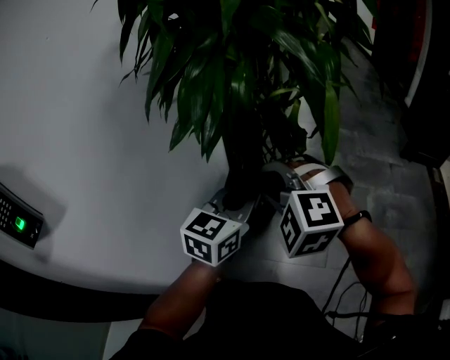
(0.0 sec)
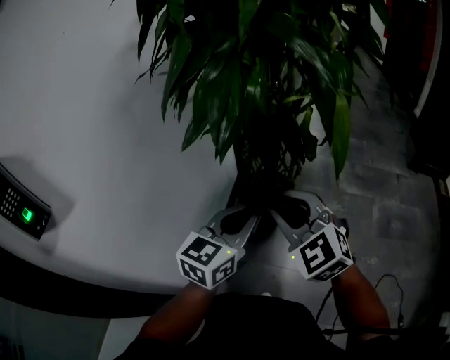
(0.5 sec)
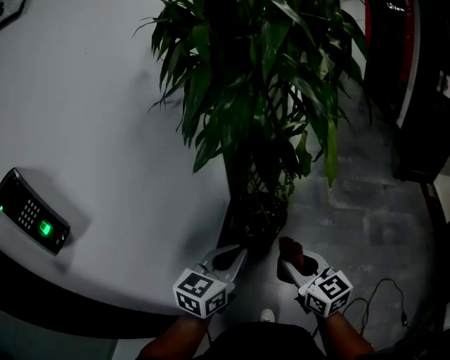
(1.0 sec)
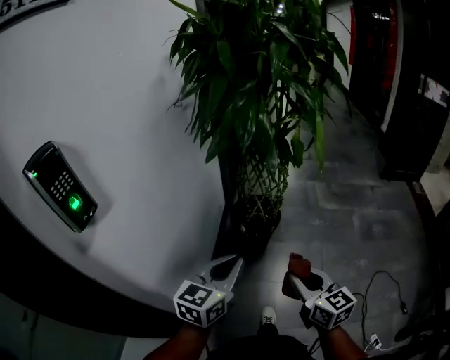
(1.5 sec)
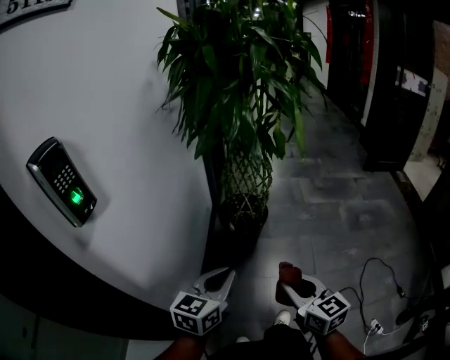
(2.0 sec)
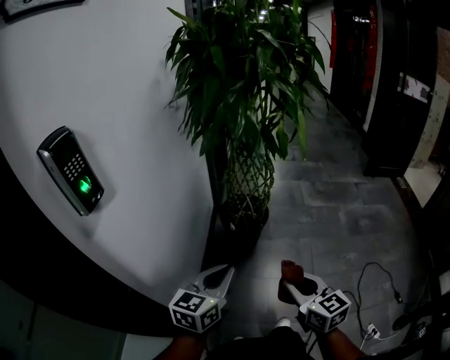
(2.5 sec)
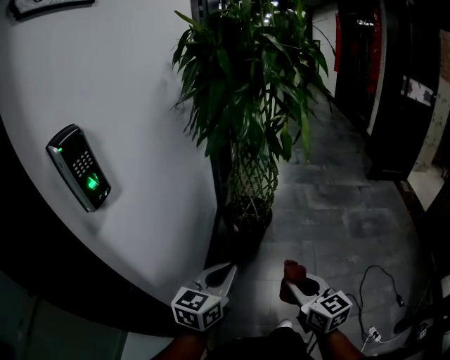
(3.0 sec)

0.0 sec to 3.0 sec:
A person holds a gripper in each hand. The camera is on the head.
0.0 sec to 1.5 sec: The right gripper travels backward by about 25 cm, and rolls clockwise, seen from behind, by roughly 80 degrees. The left gripper goes some 25 cm backward and to the left.
1.5 sec to 3.0 sec: The grippers both shift backward by about 10 cm.

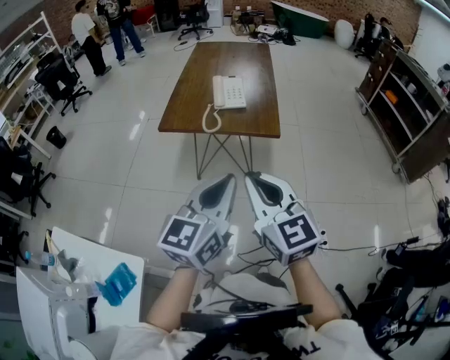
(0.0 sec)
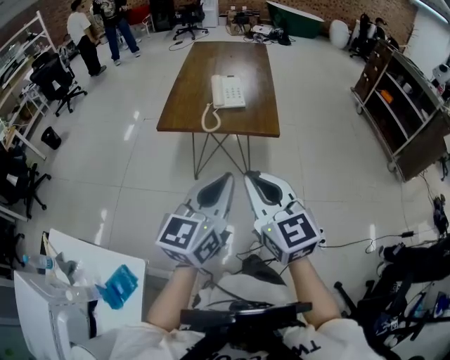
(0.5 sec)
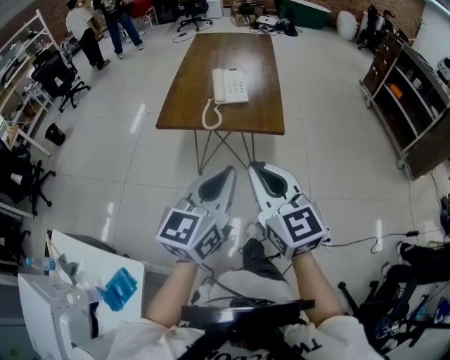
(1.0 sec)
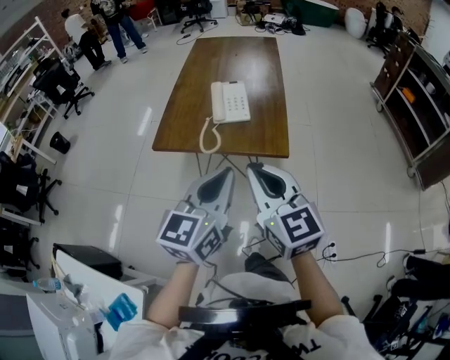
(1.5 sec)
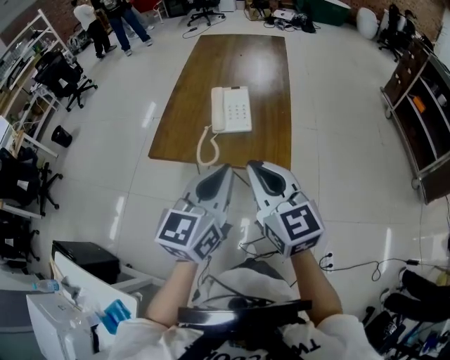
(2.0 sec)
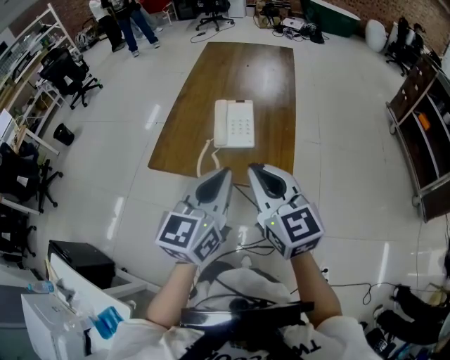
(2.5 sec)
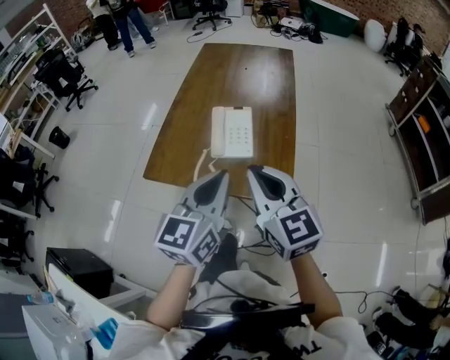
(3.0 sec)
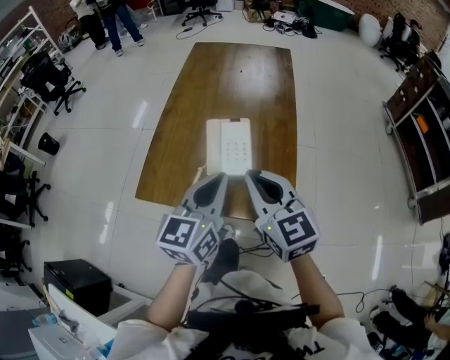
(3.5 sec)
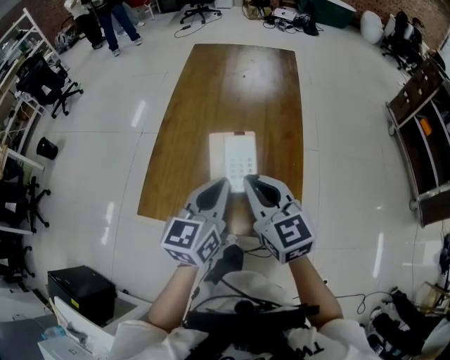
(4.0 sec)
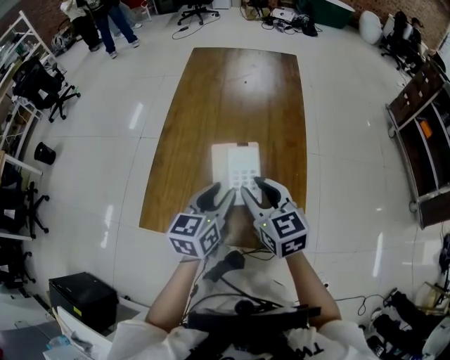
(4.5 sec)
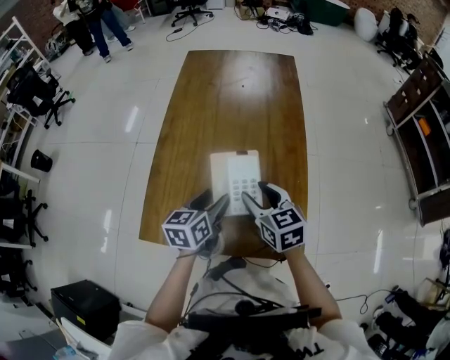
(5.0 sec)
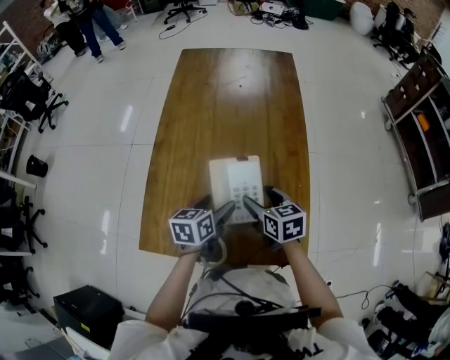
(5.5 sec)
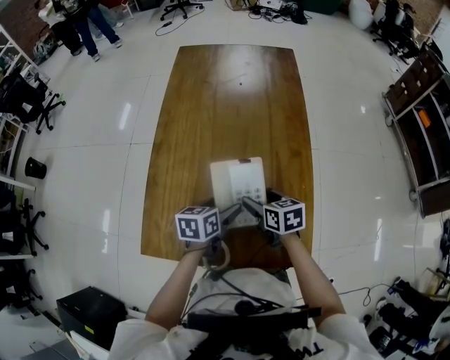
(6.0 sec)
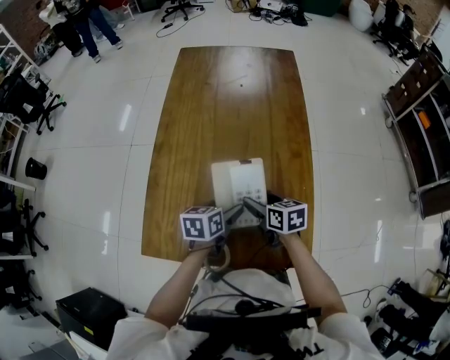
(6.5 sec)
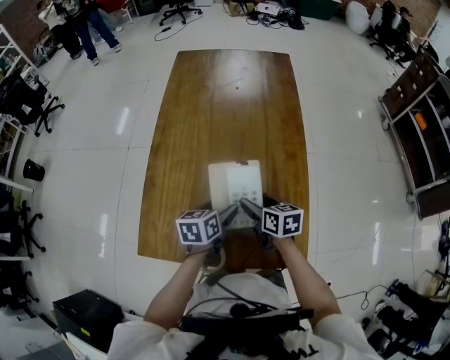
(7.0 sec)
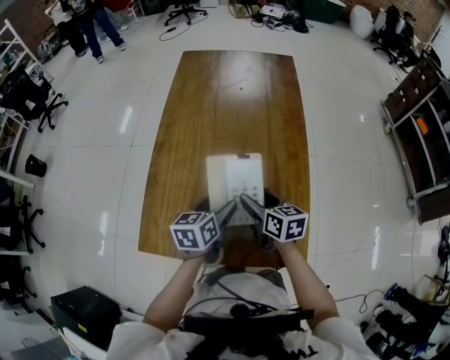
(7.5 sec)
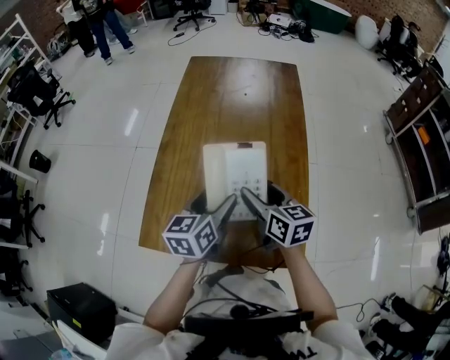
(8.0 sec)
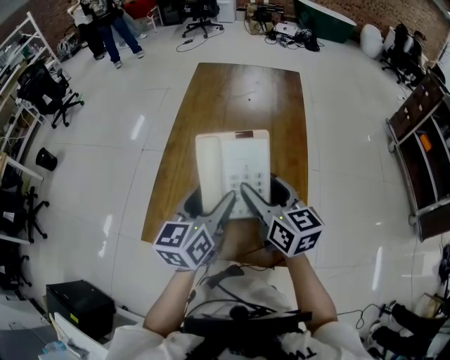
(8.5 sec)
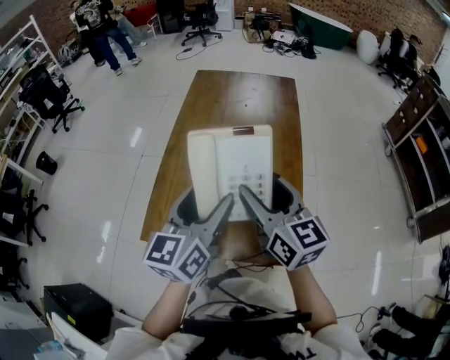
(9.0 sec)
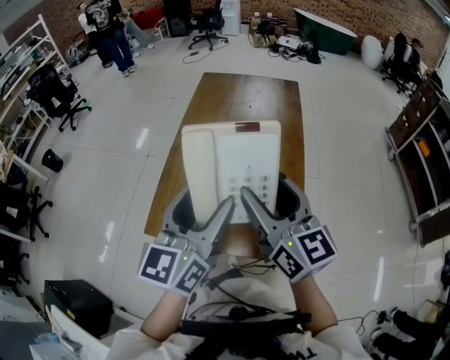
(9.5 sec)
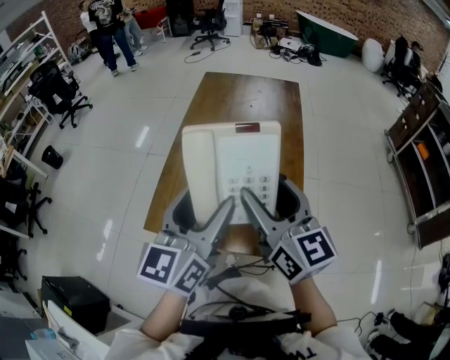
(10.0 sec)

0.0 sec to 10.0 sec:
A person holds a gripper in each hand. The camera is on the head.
0.0 sec to 2.0 sec: The two grippers go some 25 cm forward.
2.0 sec to 4.0 sec: The grippers both shift forward by approximately 25 cm.
4.0 sec to 6.0 sec: The grippers both shift downward and forward by roughly 25 cm. The right gripper swivels approximately 40 degrees, and opens. Meanwhile the left gripper rotates some 40 degrees, and opens up.
6.0 sec to 8.0 sec: The grippers both shift upward by some 15 cm. The left gripper swivels some 20 degrees. Meanwhile the right gripper turns by approximately 20 degrees.
8.0 sec to 10.0 sec: Both grippers move upward and backward, roughly 25 cm. The left gripper rotates approximately 30 degrees, while the right gripper changes its angle by approximately 30 degrees.

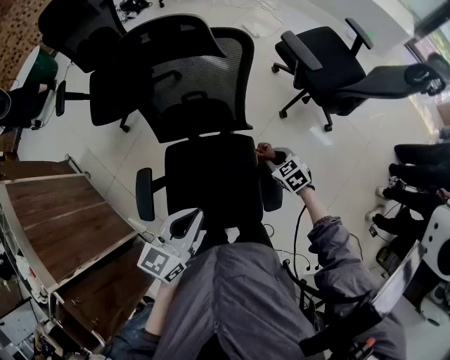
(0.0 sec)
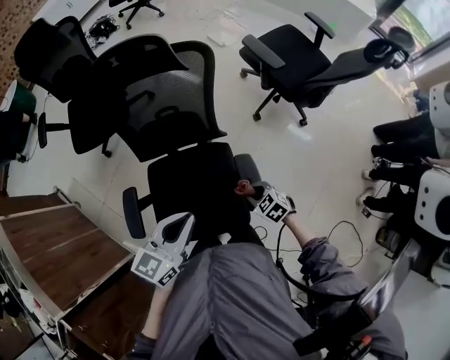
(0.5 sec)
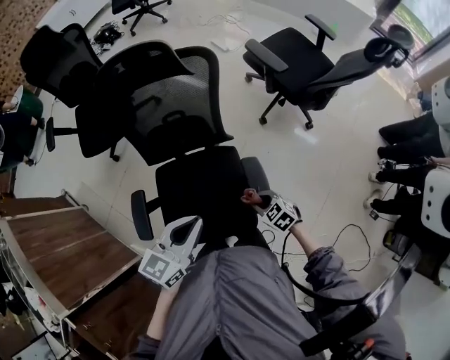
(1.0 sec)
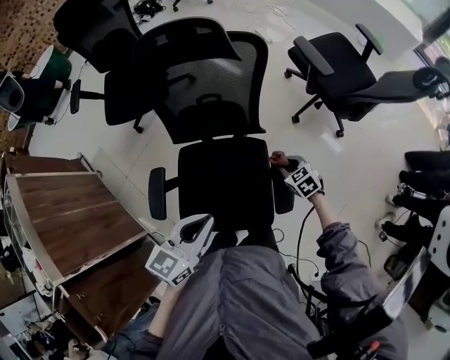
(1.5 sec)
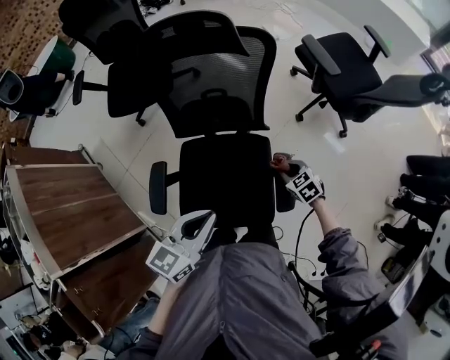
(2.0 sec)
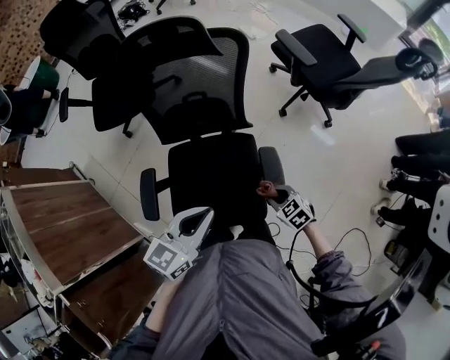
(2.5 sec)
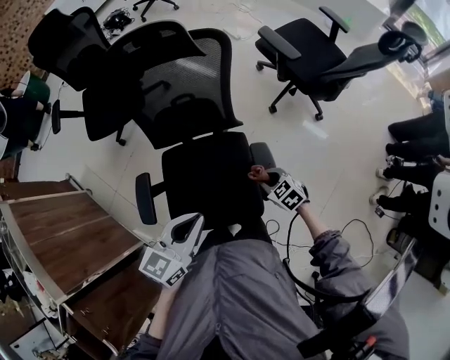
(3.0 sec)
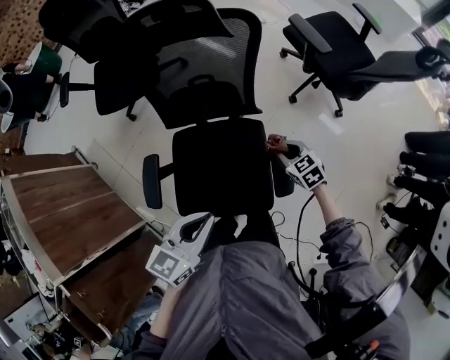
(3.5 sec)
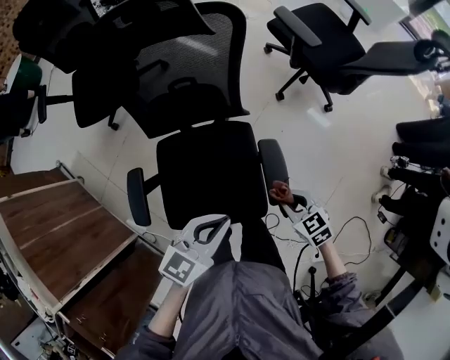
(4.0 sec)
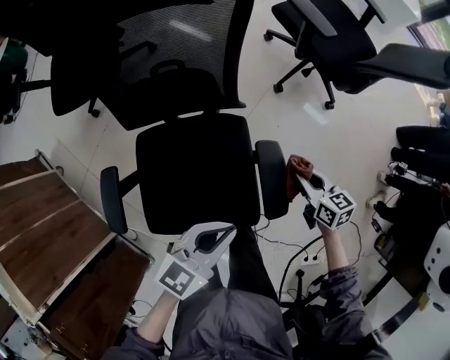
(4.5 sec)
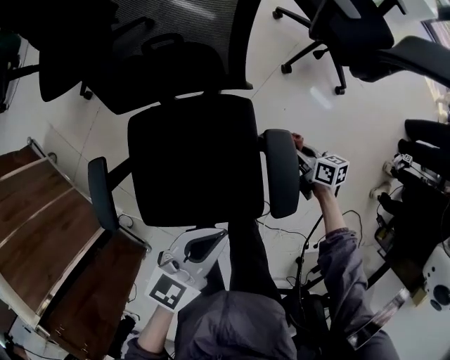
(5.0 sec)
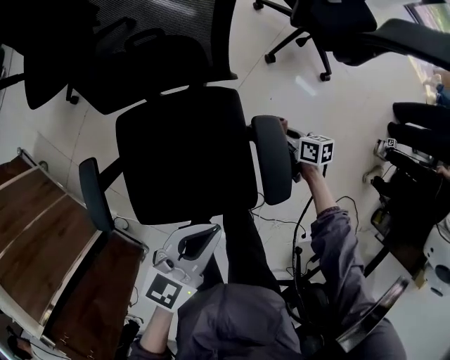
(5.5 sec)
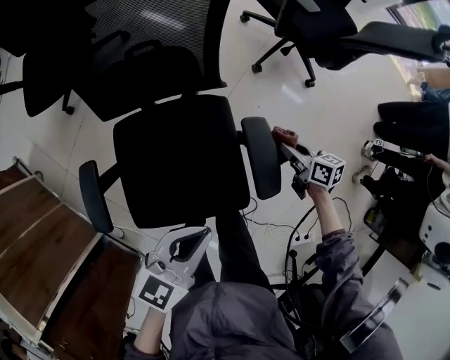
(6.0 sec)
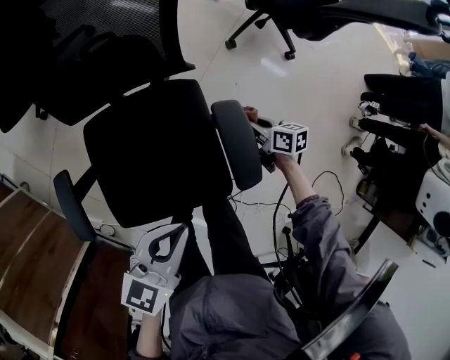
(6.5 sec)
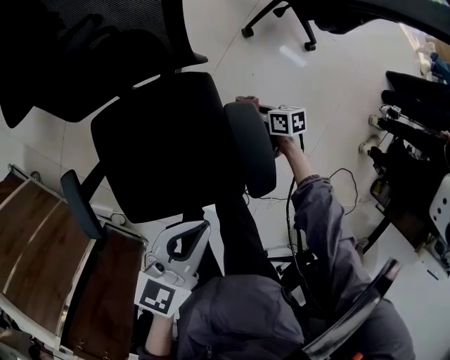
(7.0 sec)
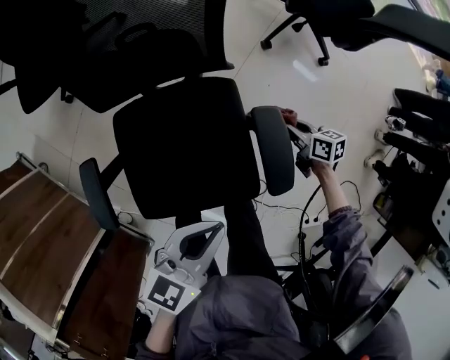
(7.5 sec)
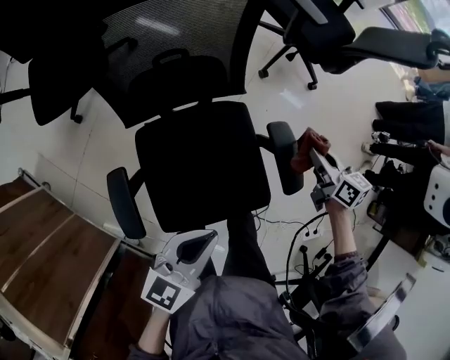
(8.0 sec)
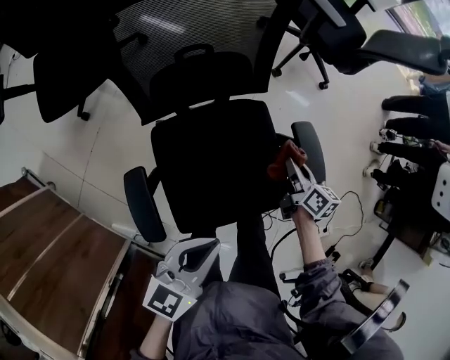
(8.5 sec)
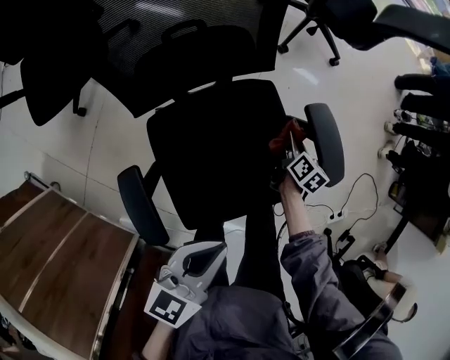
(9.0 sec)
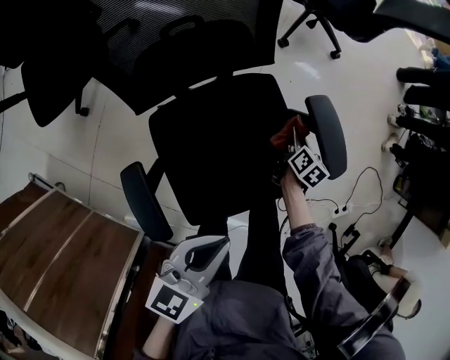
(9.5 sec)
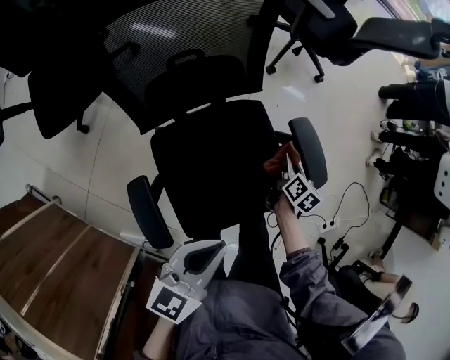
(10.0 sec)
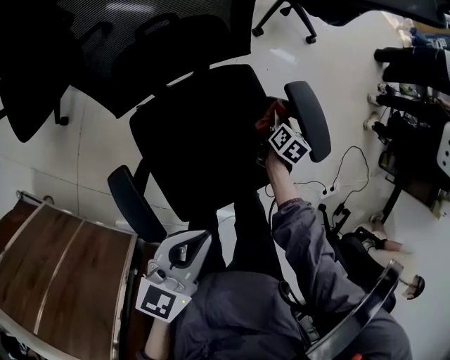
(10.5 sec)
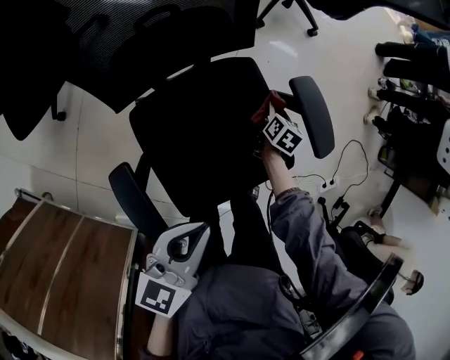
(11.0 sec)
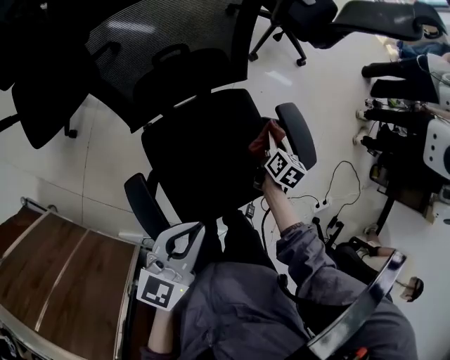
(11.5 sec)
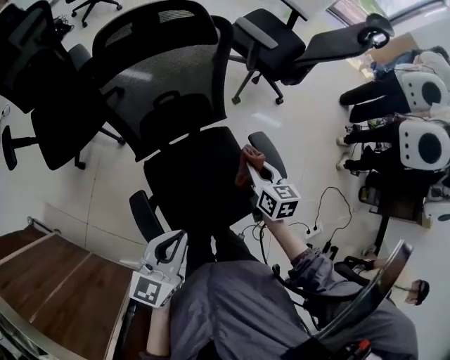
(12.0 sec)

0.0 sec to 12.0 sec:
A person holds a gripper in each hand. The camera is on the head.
0.0 sec to 2.0 sec: The right gripper travels backward and back again, about 15 cm each way.
2.0 sec to 4.0 sec: The left gripper is displaced downward and to the right by about 10 cm. The right gripper moves forward and backward over roughly 15 cm, changing direction 2 times.
4.0 sec to 6.0 sec: The right gripper shifts roughly 20 cm forward, downward and to the right, and changes its angle by approximately 40 degrees, while the left gripper goes some 5 cm downward.
6.0 sec to 8.0 sec: The right gripper heads upward, covering roughly 15 cm. The left gripper heads to the left, covering about 10 cm.
8.0 sec to 10.0 sec: The right gripper is displaced downward by roughly 15 cm, and turns by roughly 40 degrees. The left gripper shifts by about 5 cm.
10.0 sec to 12.0 sec: The right gripper moves upward and to the left, roughly 25 cm, and changes its angle by roughly 30 degrees. The left gripper heads upward and to the left, covering about 10 cm.

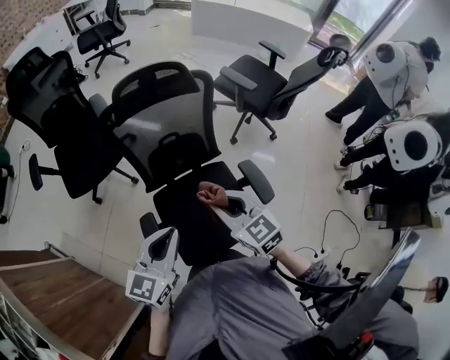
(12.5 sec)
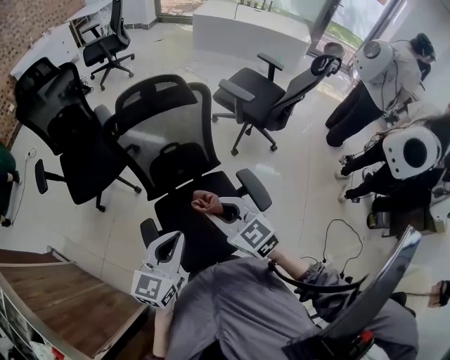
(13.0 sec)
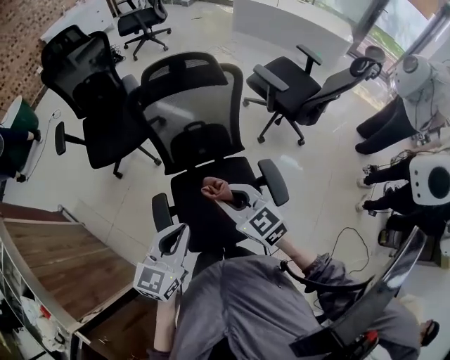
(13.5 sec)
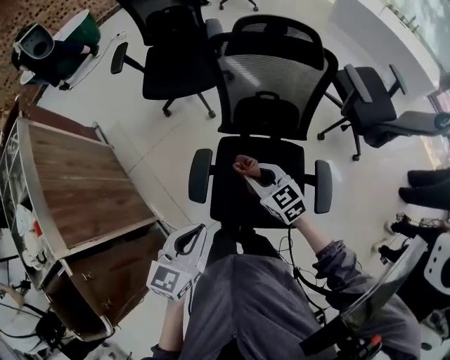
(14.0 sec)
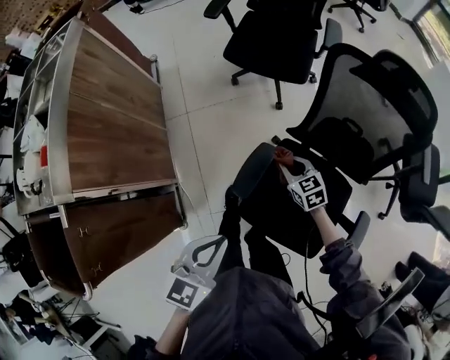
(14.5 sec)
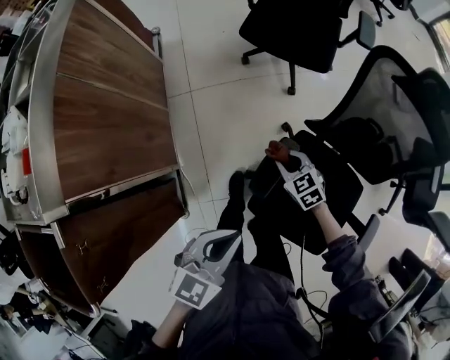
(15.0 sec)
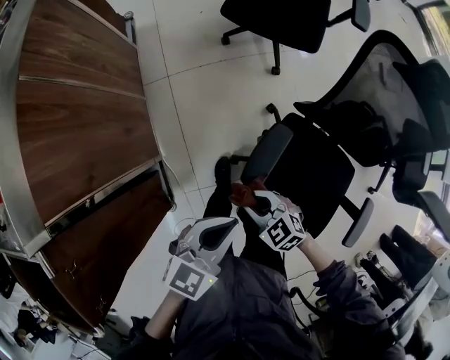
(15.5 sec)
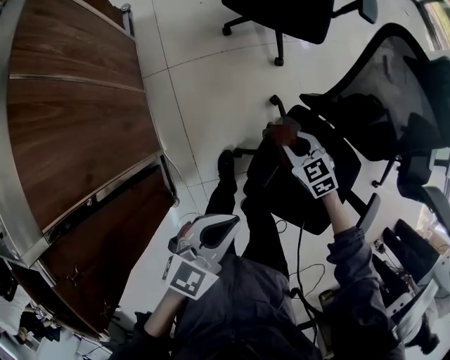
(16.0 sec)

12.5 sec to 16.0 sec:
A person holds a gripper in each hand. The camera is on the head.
12.5 sec to 14.5 sec: The right gripper shifts approximately 30 cm downward, and changes its angle by about 50 degrees; the left gripper ends up some 20 cm from where it was, and swivels about 50 degrees.
14.5 sec to 16.0 sec: The left gripper shifts roughly 15 cm downward and to the left, while the right gripper goes about 10 cm to the left and downward.
